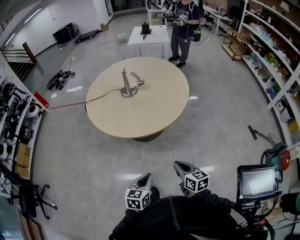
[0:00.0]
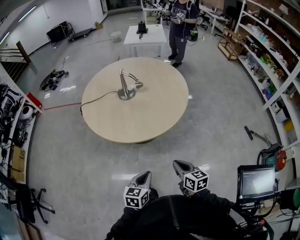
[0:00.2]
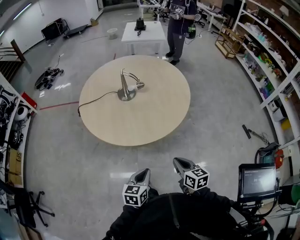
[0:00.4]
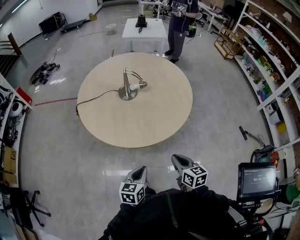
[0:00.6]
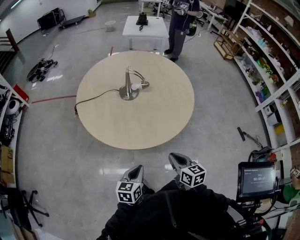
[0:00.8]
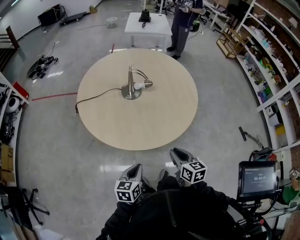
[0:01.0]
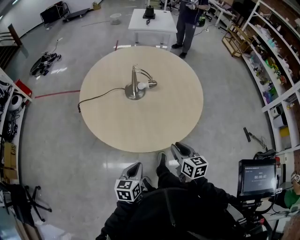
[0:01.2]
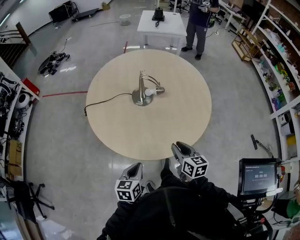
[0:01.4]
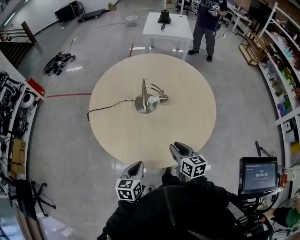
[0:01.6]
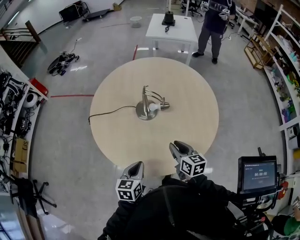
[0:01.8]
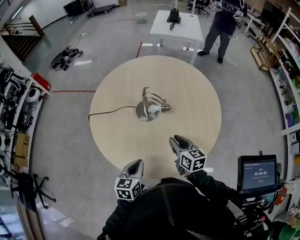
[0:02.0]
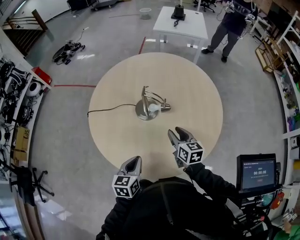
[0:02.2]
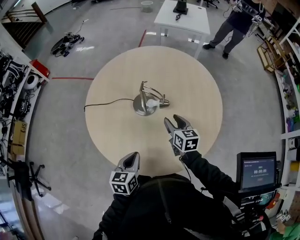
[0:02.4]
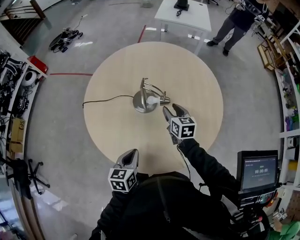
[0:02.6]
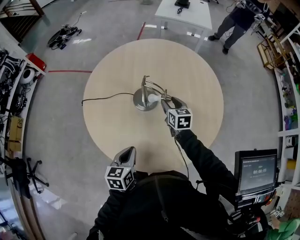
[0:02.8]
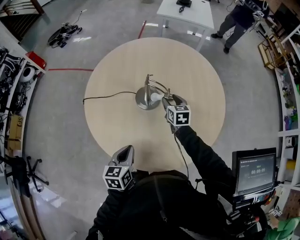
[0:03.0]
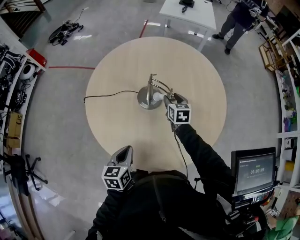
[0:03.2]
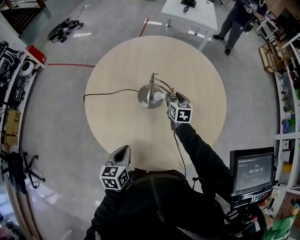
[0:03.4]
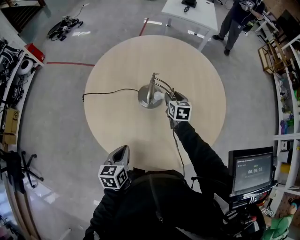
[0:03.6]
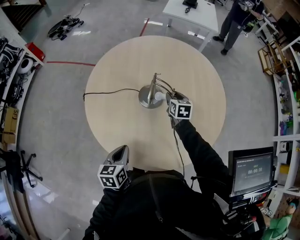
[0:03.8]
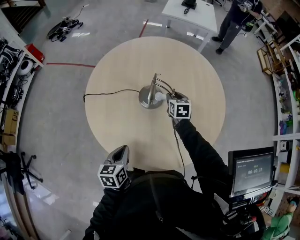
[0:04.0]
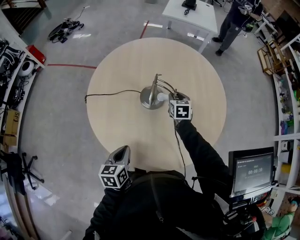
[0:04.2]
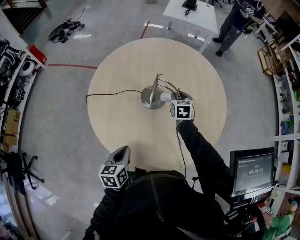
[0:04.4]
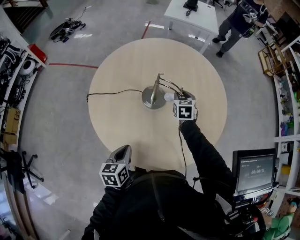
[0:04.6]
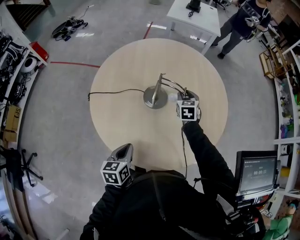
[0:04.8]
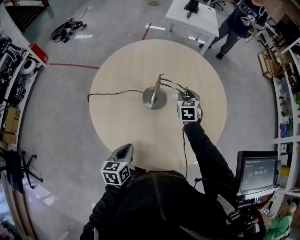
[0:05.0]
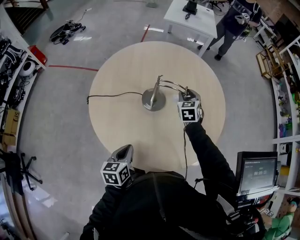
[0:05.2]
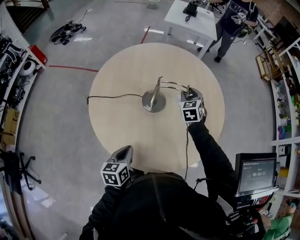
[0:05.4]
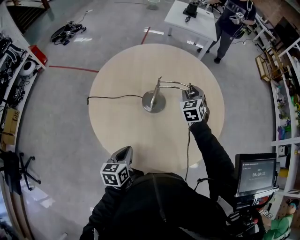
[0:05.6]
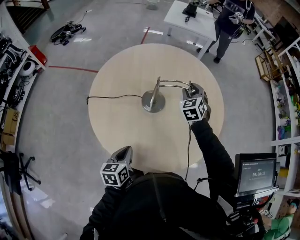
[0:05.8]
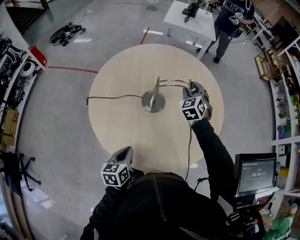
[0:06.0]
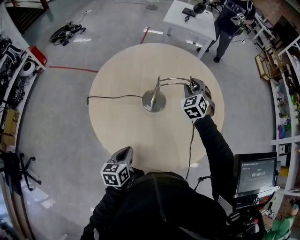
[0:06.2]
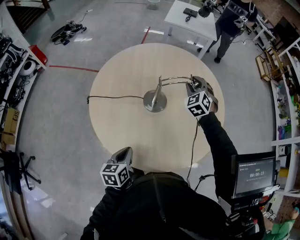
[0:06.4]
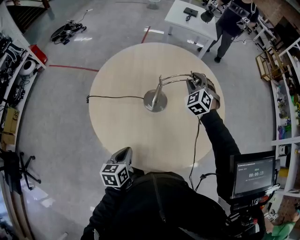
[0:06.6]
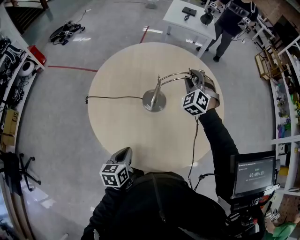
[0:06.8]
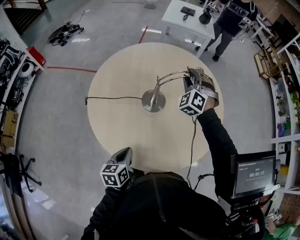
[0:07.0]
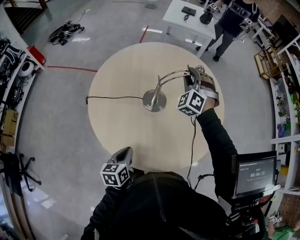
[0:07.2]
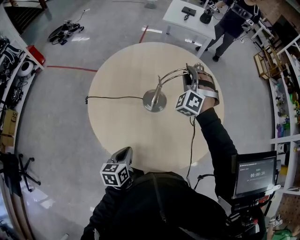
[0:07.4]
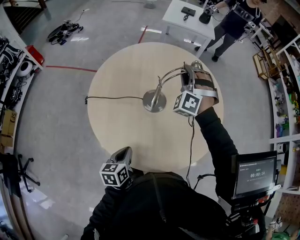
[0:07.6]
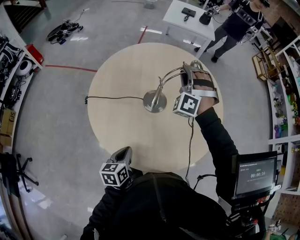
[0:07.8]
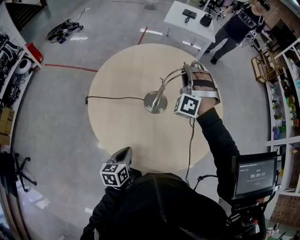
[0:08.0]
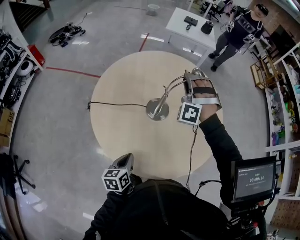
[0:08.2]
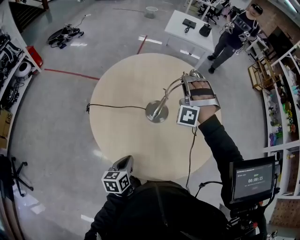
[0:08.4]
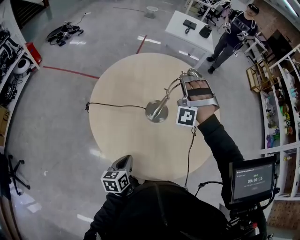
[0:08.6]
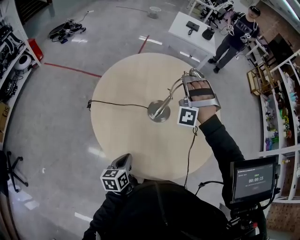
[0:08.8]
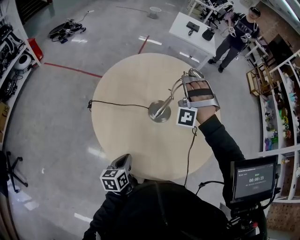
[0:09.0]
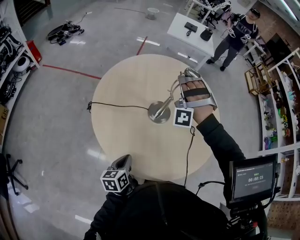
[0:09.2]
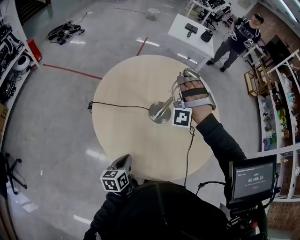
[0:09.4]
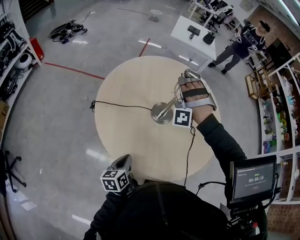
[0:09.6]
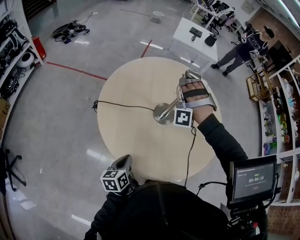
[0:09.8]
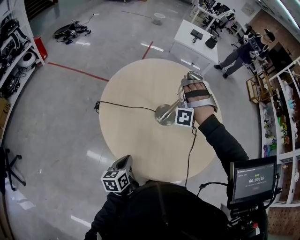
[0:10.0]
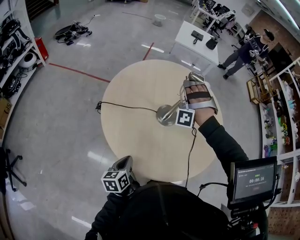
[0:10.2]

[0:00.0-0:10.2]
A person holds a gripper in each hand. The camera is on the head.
0:00.0 to 0:01.4: Both grippers travel together forward and to the left, roughly 30 cm.
0:01.4 to 0:03.0: The left gripper shifts roughly 15 cm forward, while the right gripper is displaced forward by about 35 cm, and opens up.
0:03.0 to 0:04.4: The left gripper heads to the left, covering roughly 5 cm.
0:04.4 to 0:05.8: The right gripper travels upward by approximately 10 cm, and rotates roughly 30 degrees.
0:05.8 to 0:07.2: The right gripper goes some 5 cm upward, and turns by roughly 40 degrees.
0:07.2 to 0:08.8: The right gripper shifts roughly 10 cm to the left and upward, and rotates around the line of its fingers by about 40 degrees, counterclockwise from behind.
0:08.8 to 0:10.2: The right gripper changes place by approximately 5 cm, while the left gripper ends up approximately 5 cm from where it was.

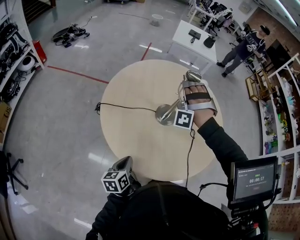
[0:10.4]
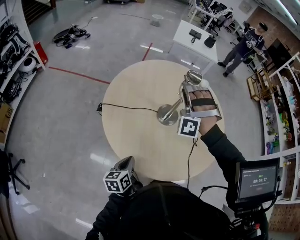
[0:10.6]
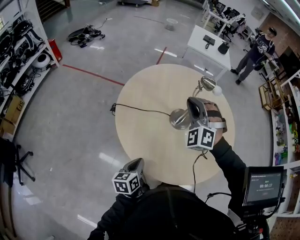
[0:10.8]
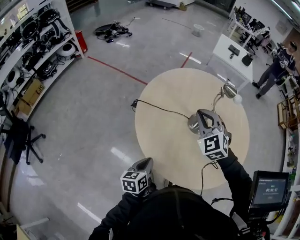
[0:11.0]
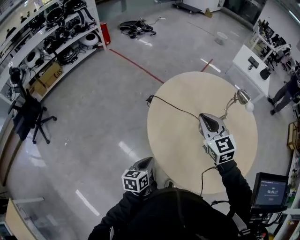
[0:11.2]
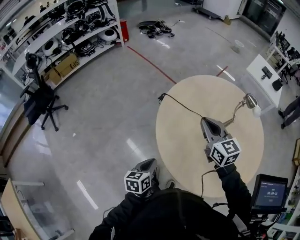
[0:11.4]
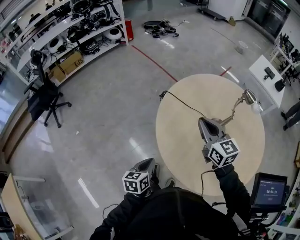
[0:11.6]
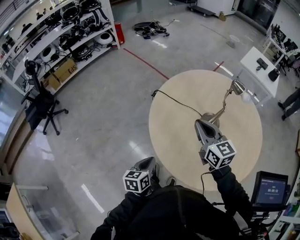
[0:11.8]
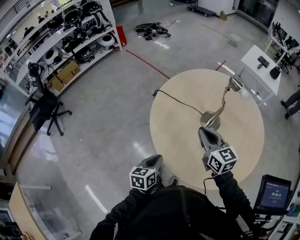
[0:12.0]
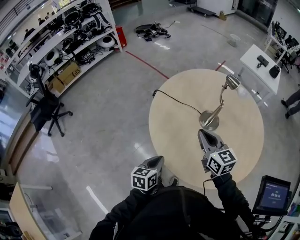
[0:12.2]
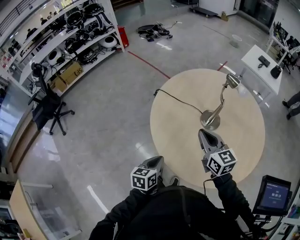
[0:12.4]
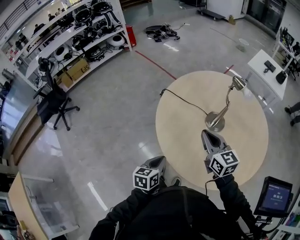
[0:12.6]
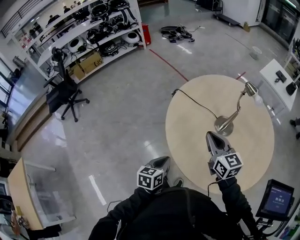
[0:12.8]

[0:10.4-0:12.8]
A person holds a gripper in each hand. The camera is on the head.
0:10.4 to 0:11.6: The right gripper moves some 25 cm, turns by about 130 degrees, and closes, while the left gripper changes place by about 10 cm, and rotates some 30 degrees.
0:11.6 to 0:12.8: The left gripper travels to the right by about 5 cm. The right gripper goes roughly 10 cm backward.

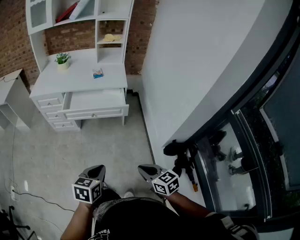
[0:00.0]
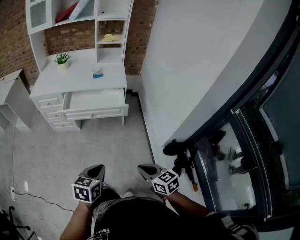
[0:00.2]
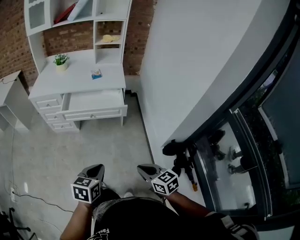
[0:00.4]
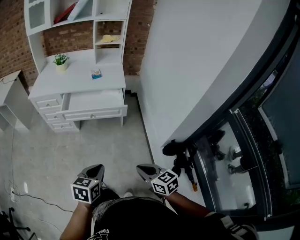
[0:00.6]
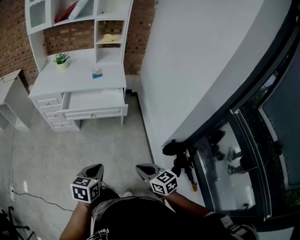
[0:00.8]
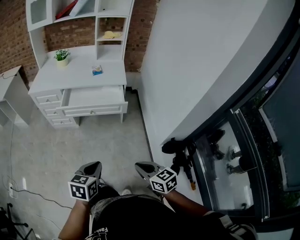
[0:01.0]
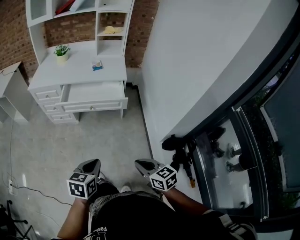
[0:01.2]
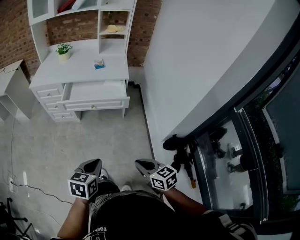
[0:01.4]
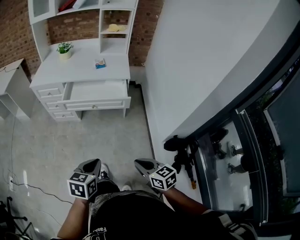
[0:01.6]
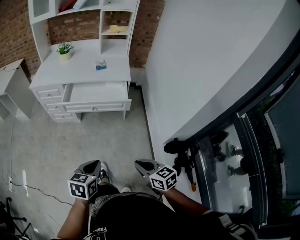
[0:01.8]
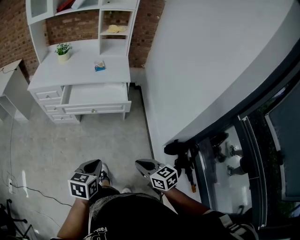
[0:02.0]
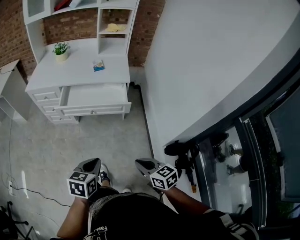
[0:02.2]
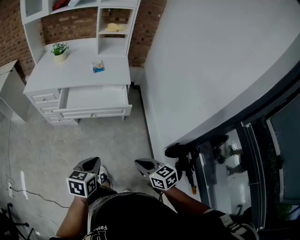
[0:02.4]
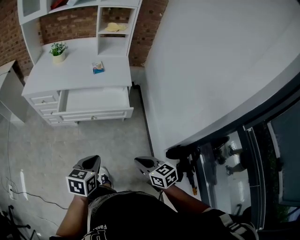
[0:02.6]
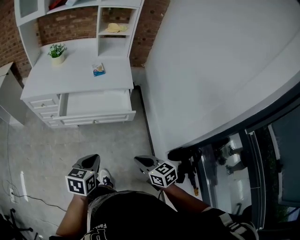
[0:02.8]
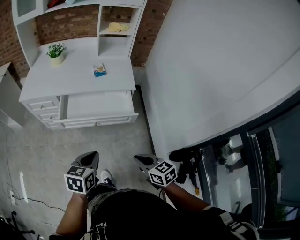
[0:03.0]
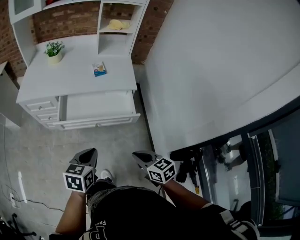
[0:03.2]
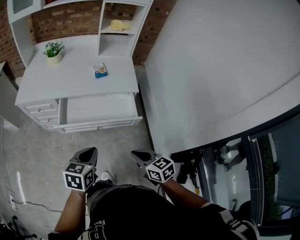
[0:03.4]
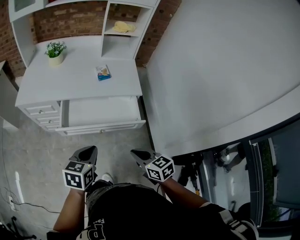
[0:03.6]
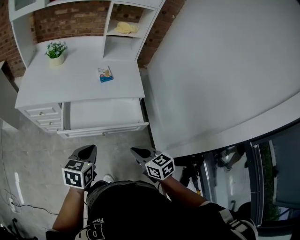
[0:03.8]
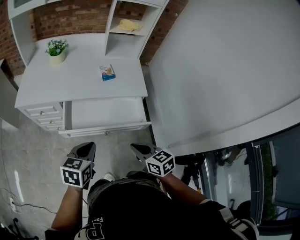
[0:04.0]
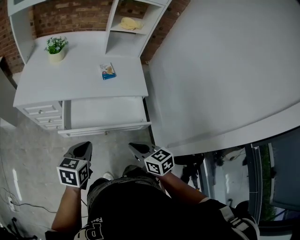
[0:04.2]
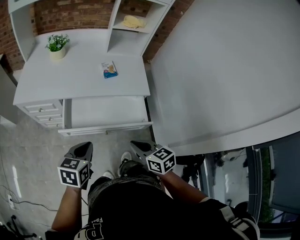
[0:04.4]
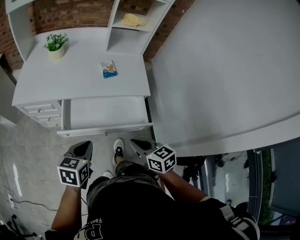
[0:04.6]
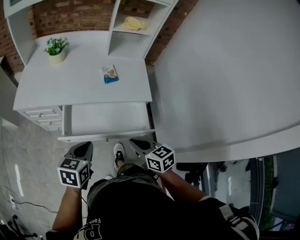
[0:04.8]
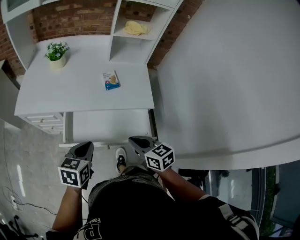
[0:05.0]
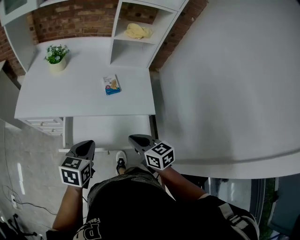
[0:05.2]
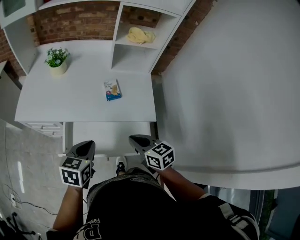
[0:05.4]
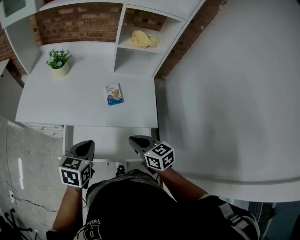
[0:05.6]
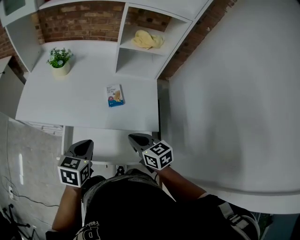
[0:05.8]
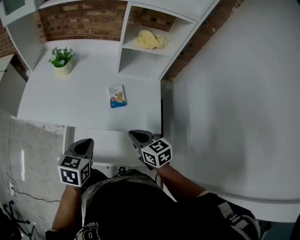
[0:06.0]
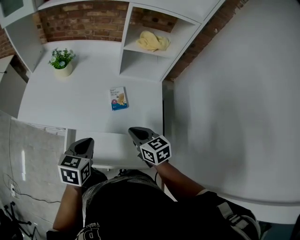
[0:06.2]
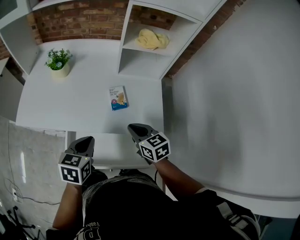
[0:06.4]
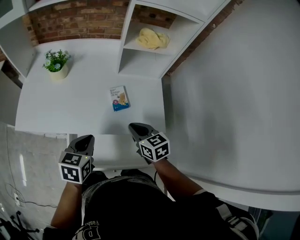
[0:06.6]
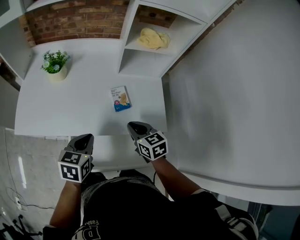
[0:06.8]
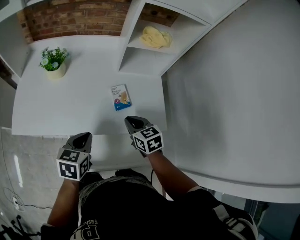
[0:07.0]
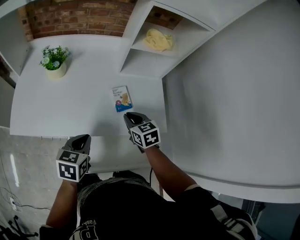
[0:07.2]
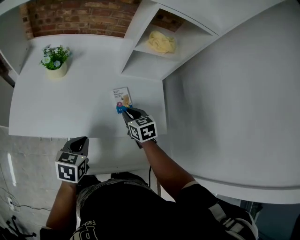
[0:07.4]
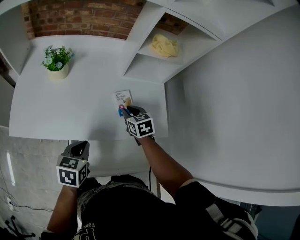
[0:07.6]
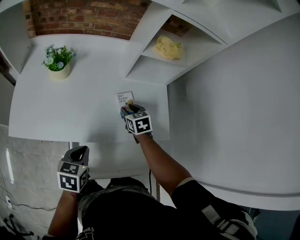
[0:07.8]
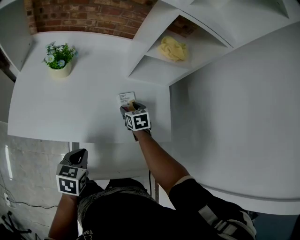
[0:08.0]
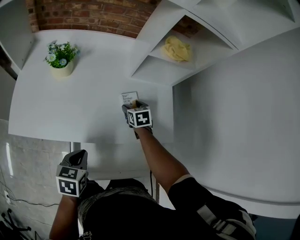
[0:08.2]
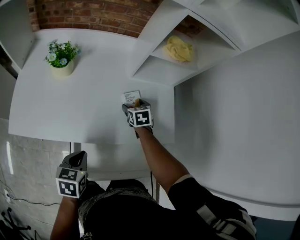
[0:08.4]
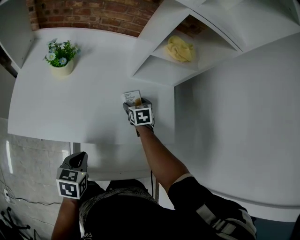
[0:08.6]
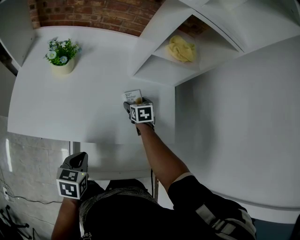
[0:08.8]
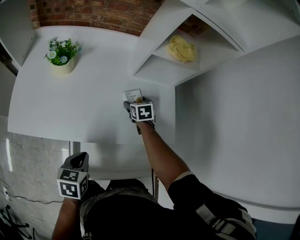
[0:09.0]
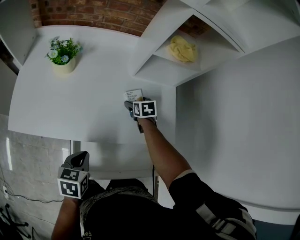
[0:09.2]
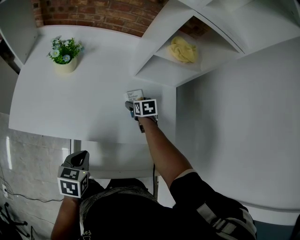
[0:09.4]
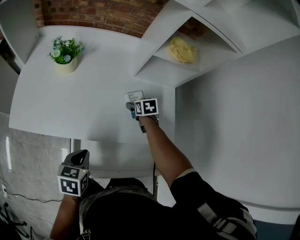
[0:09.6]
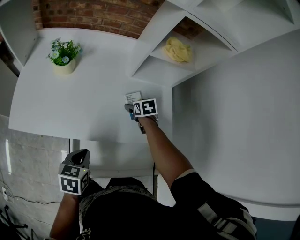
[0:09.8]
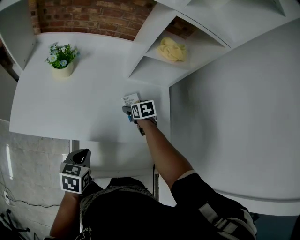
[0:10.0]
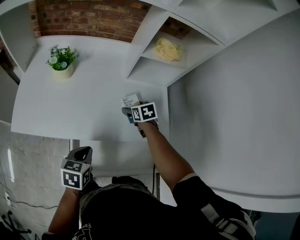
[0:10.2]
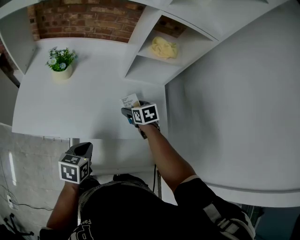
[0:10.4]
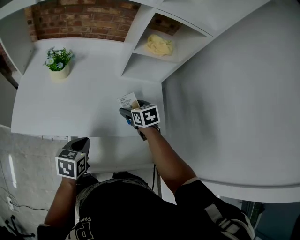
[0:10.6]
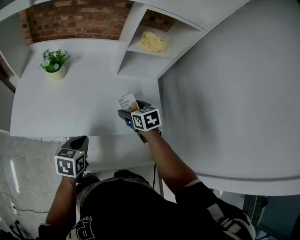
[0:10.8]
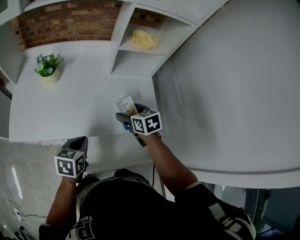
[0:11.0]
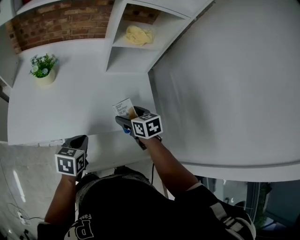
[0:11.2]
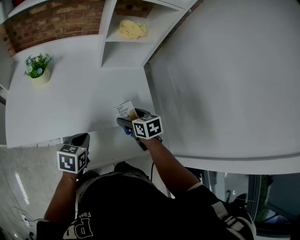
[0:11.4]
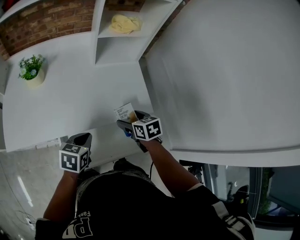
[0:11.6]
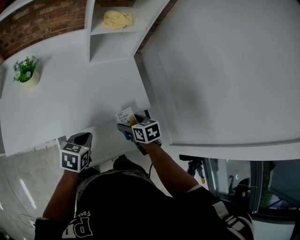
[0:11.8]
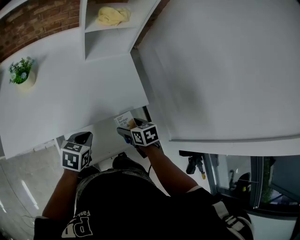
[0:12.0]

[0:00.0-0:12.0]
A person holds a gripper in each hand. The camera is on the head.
0:00.0 to 0:01.6: The grippers stay close to where they were, moving slightly.
0:01.6 to 0:03.0: Both grippers travel together forward, approximately 20 cm.
0:03.0 to 0:04.4: The two grippers go about 20 cm forward and to the left.
0:04.4 to 0:06.0: The grippers both shift forward by approximately 25 cm.
0:06.0 to 0:07.6: The right gripper goes approximately 20 cm forward, to the left and downward, and turns by about 20 degrees. The left gripper heads to the left, forward and downward, covering roughly 15 cm.
0:07.6 to 0:09.0: The right gripper moves downward and forward, some 10 cm, and opens.
0:09.0 to 0:10.4: The right gripper travels upward and backward by some 10 cm.
0:10.4 to 0:12.0: The right gripper shifts roughly 25 cm backward and to the right, and changes its angle by roughly 20 degrees. Meanwhile the left gripper moves to the right, roughly 10 cm, and changes its angle by some 20 degrees.
